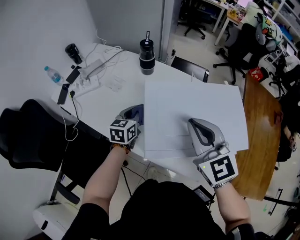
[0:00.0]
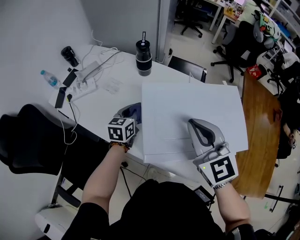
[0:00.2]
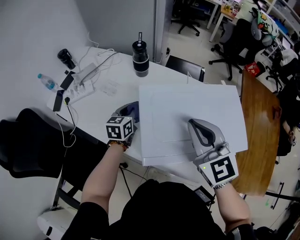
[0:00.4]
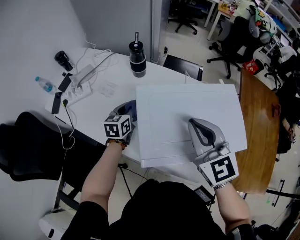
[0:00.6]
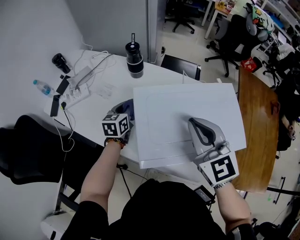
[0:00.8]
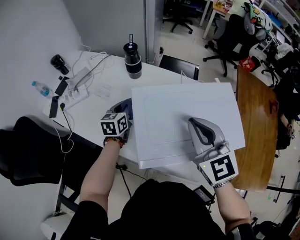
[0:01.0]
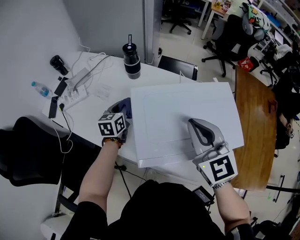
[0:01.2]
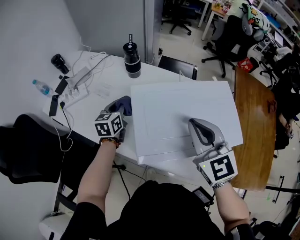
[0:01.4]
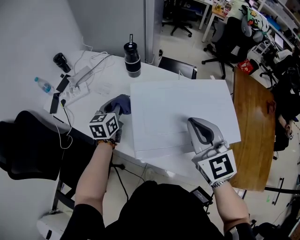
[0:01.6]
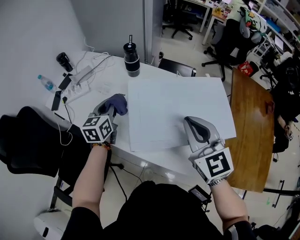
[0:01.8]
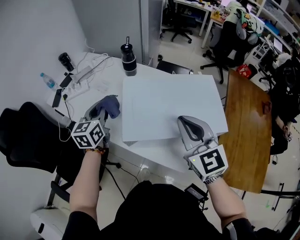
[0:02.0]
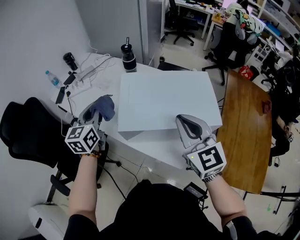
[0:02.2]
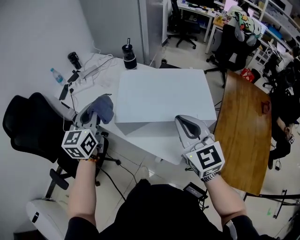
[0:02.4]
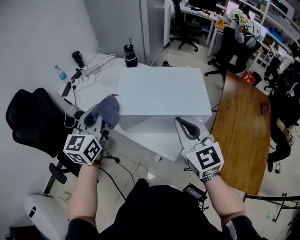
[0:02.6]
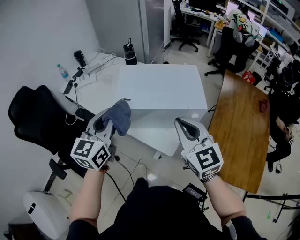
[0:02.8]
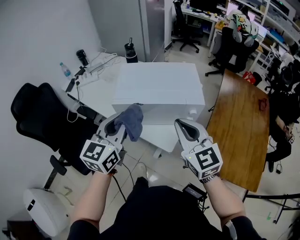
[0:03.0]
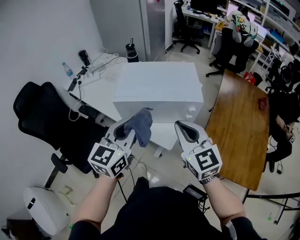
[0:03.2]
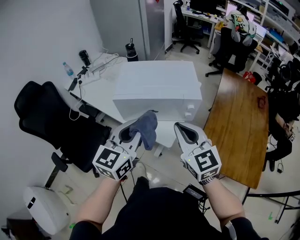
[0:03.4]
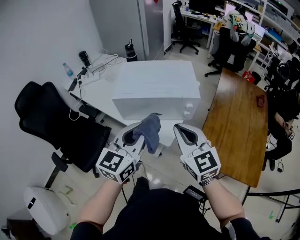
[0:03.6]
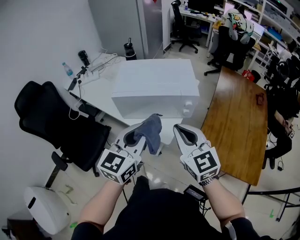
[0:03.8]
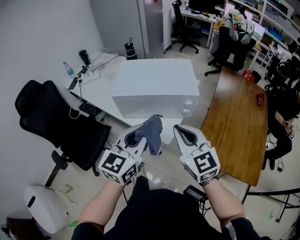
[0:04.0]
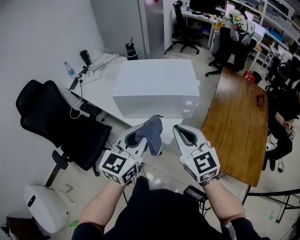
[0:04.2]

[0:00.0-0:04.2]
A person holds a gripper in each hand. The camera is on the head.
0.0 to 1.4 s: The left gripper moves forward, approximately 5 cm.
1.4 to 2.8 s: The right gripper moves backward, approximately 20 cm. The left gripper goes approximately 40 cm backward and upward, and rotates roughly 30 degrees.
2.8 to 4.2 s: The left gripper travels backward and to the right by roughly 20 cm. The right gripper is displaced backward by some 10 cm.

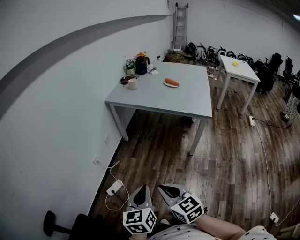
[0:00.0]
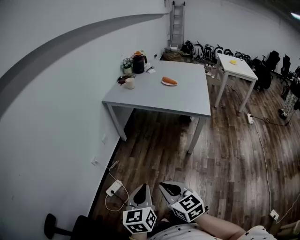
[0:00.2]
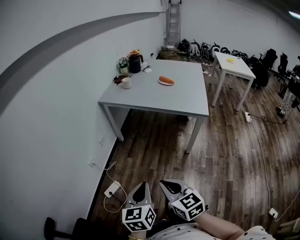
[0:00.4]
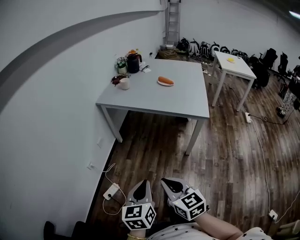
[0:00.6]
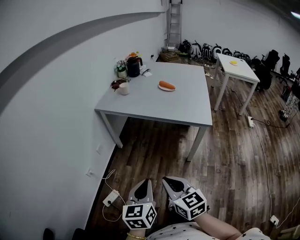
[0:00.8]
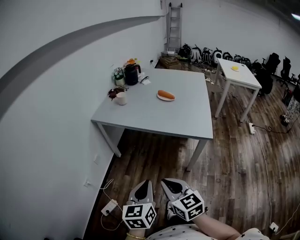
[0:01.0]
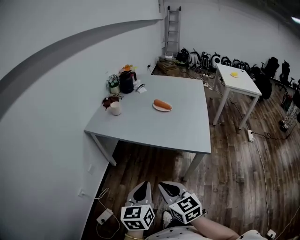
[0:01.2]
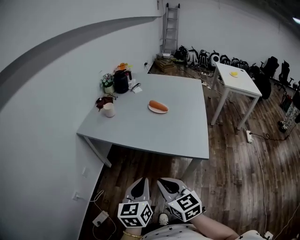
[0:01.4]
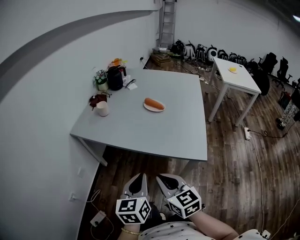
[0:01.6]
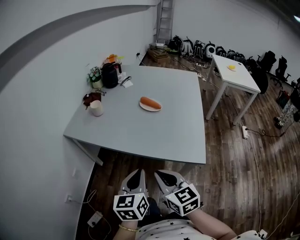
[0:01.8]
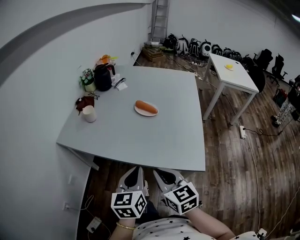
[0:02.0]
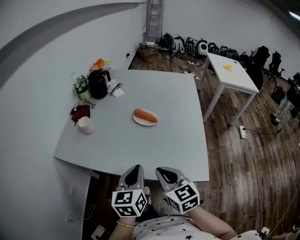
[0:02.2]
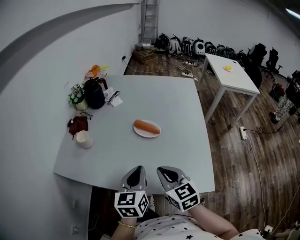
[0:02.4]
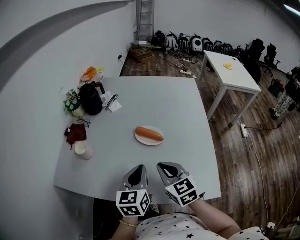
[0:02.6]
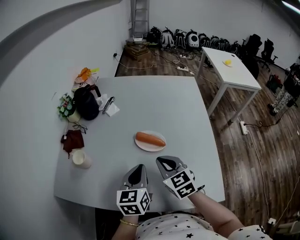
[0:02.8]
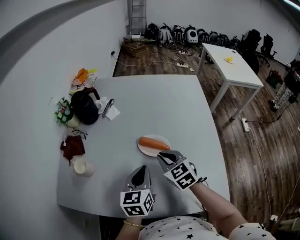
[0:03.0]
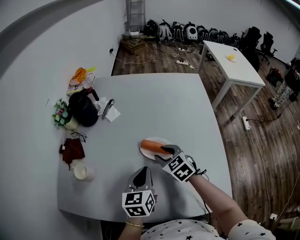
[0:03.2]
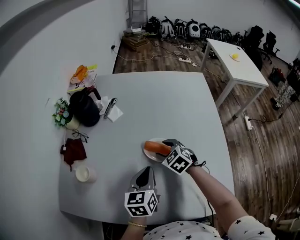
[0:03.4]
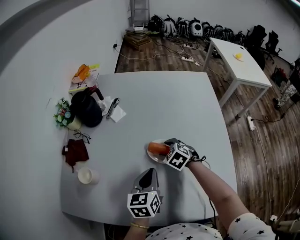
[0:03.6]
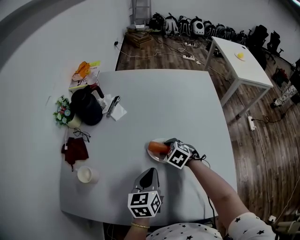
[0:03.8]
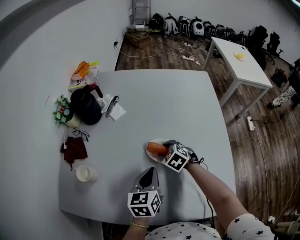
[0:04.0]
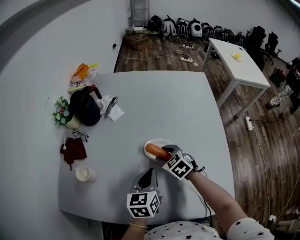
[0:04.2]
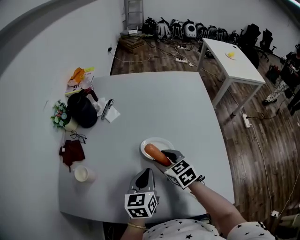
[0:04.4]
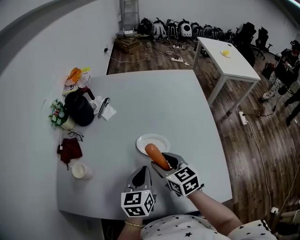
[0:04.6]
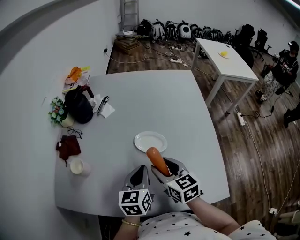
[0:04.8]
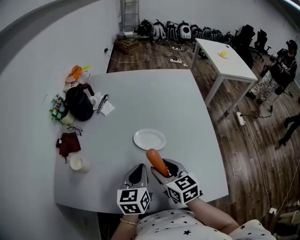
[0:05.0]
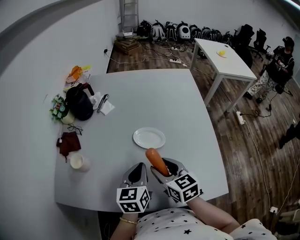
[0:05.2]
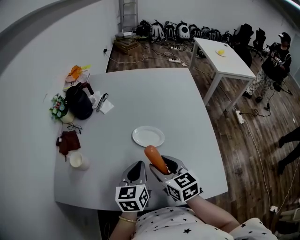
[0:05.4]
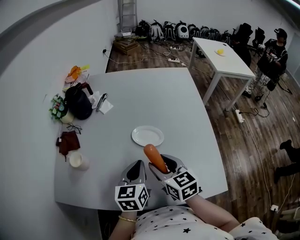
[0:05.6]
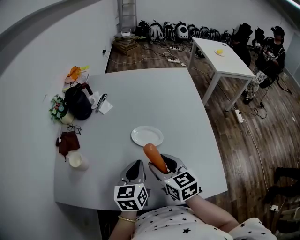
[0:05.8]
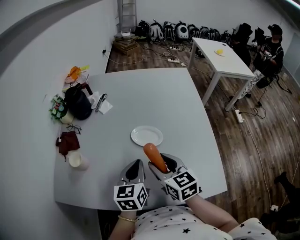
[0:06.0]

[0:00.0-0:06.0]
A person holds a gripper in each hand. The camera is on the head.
0.0 to 1.6 s: Both grippers are carried forward and to the right, approximately 40 cm.
1.6 to 3.0 s: Both grippers are carried forward, about 50 cm. The right gripper turns by about 20 degrees.
3.0 to 4.4 s: The right gripper goes downward and returns, roughly 10 cm each way, and opens.
4.4 to 6.0 s: The right gripper goes some 15 cm backward and upward, while the left gripper ends up roughly 5 cm from where it was.

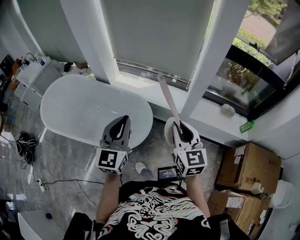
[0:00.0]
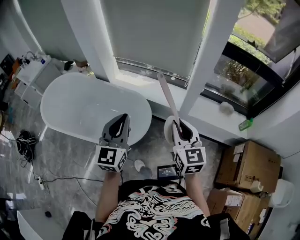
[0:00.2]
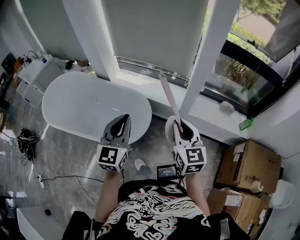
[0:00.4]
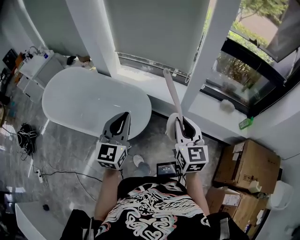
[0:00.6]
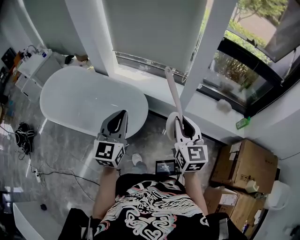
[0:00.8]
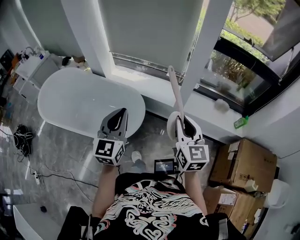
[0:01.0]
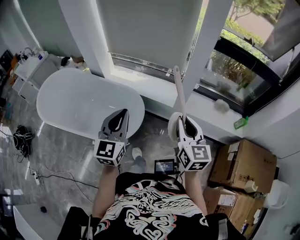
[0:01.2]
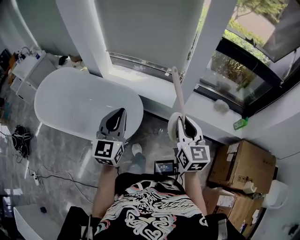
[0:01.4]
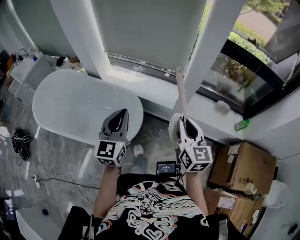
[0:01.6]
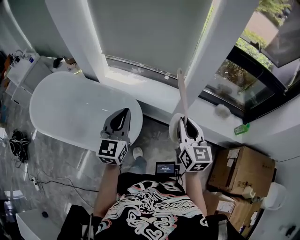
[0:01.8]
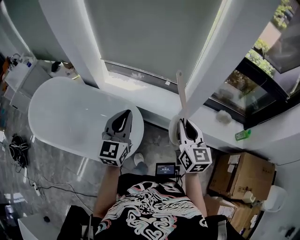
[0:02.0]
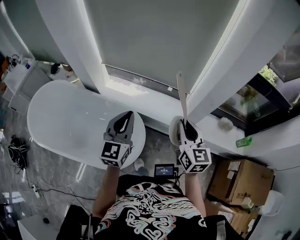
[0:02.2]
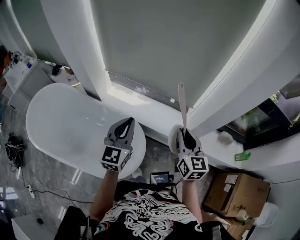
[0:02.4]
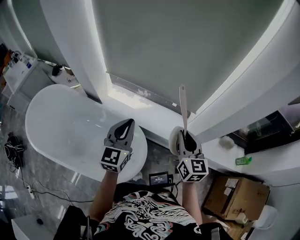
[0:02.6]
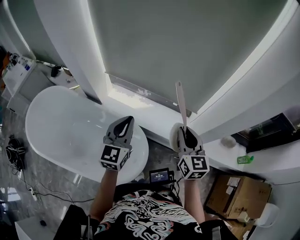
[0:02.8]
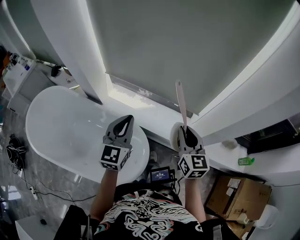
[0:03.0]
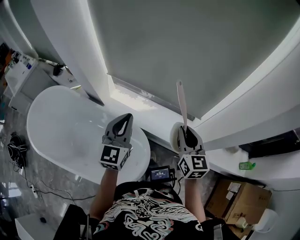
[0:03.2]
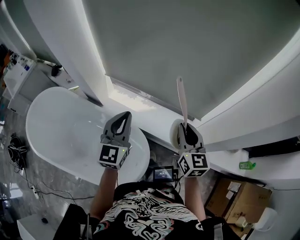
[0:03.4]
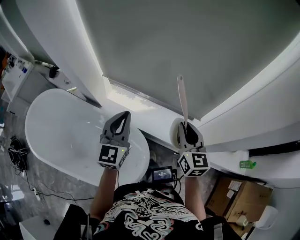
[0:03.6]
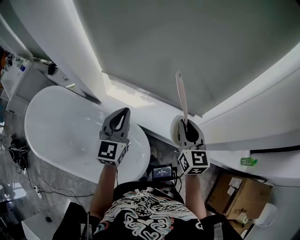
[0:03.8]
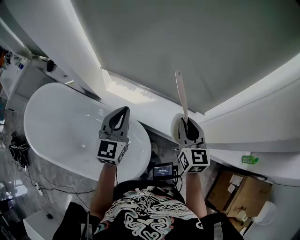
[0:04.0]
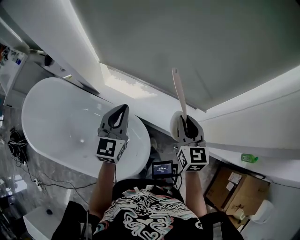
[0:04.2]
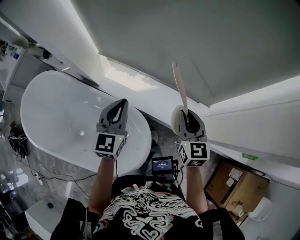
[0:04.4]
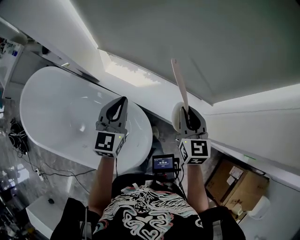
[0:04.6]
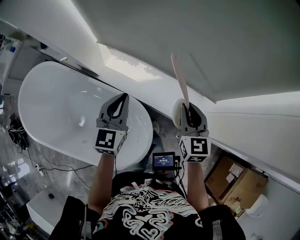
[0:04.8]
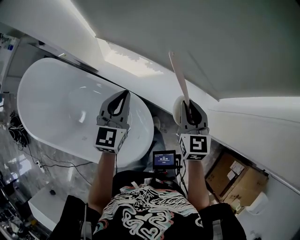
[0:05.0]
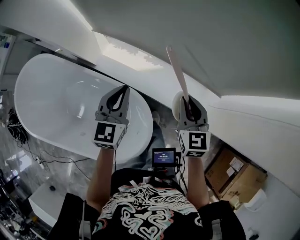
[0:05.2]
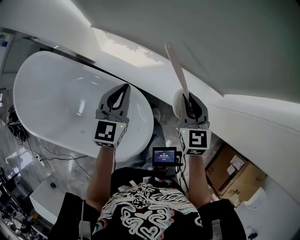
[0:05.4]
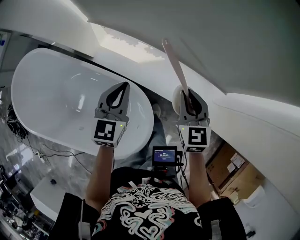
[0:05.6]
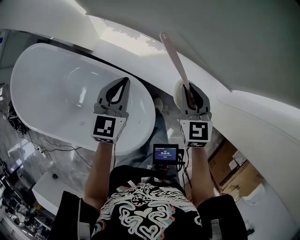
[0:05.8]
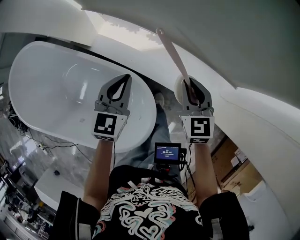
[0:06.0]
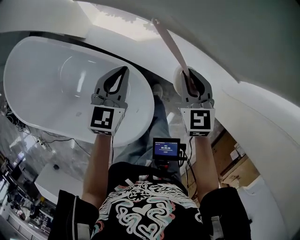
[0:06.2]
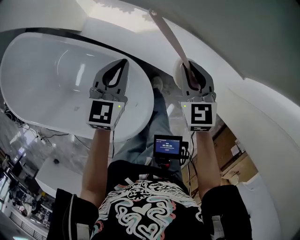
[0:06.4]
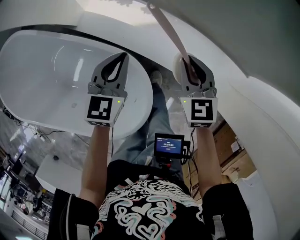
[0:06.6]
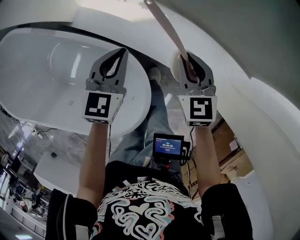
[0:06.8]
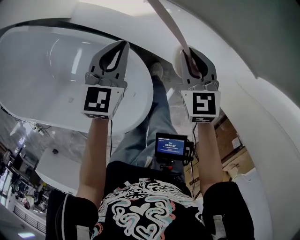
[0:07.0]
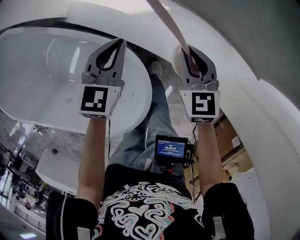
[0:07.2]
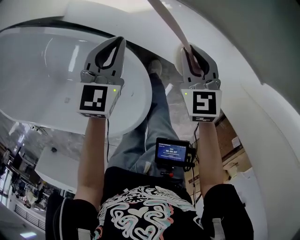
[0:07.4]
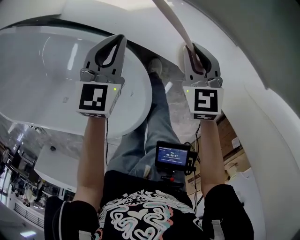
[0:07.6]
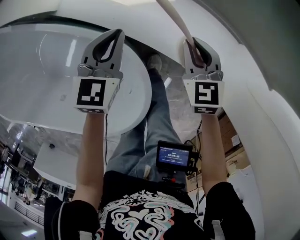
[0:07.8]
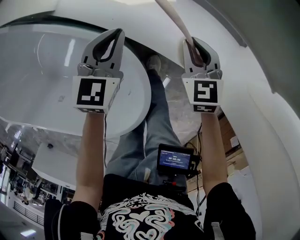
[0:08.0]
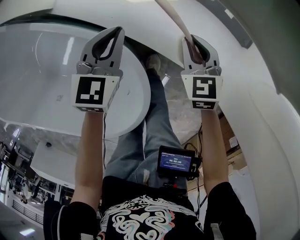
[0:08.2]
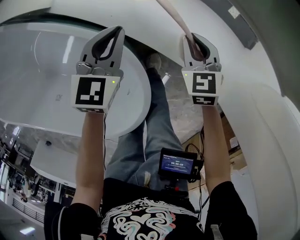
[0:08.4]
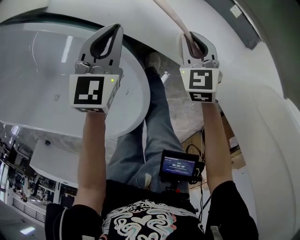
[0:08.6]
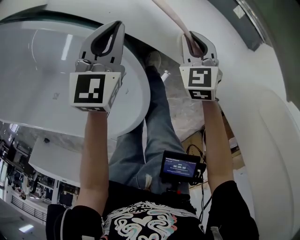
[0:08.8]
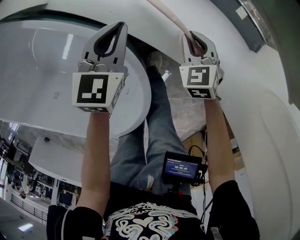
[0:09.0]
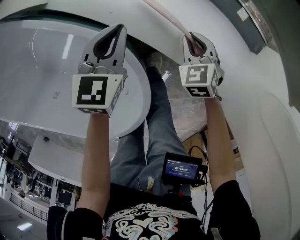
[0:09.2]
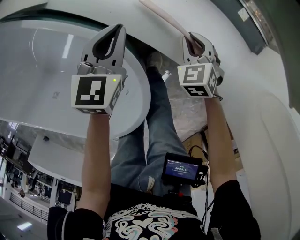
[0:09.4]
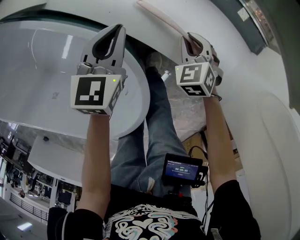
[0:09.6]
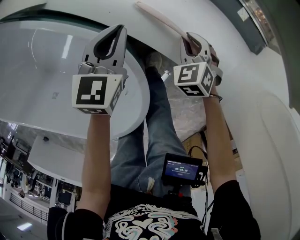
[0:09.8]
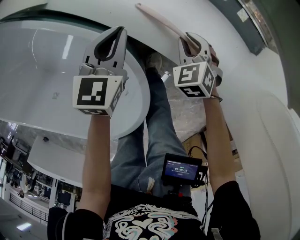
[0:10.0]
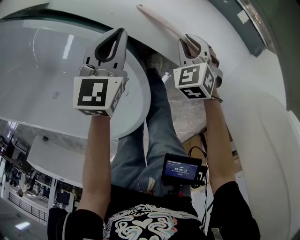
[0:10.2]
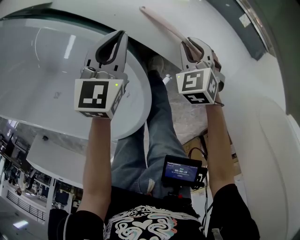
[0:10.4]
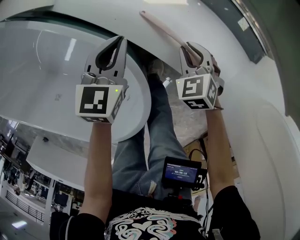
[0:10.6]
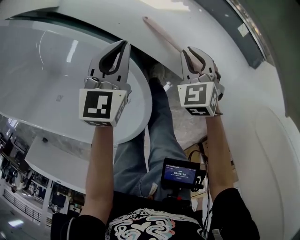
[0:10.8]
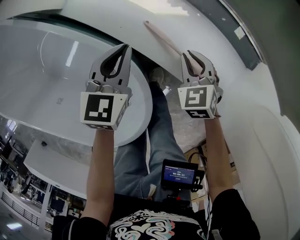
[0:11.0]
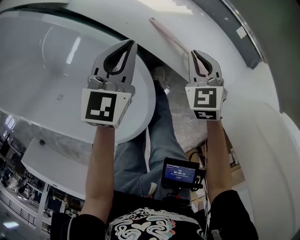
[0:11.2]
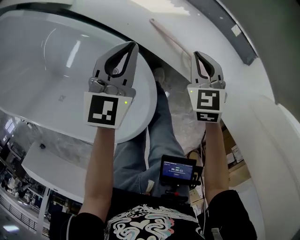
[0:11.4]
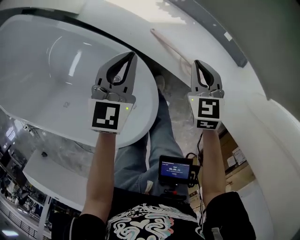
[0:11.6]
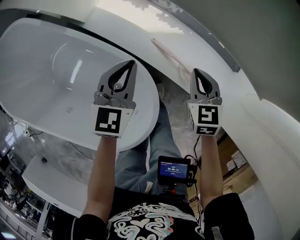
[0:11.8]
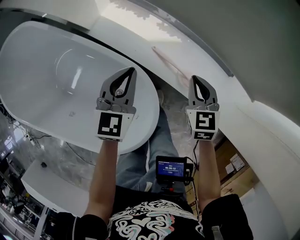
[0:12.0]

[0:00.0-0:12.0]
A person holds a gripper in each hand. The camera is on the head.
0.0 to 1.6 s: The right gripper is displaced to the right by approximately 10 cm. The left gripper shifts approximately 10 cm forward and to the right.
1.6 to 3.0 s: Both grippers travel together forward, roughly 35 cm.
3.0 to 4.4 s: The two grippers go approximately 15 cm forward and downward.
4.4 to 6.0 s: The left gripper is displaced downward by about 20 cm; the right gripper heads downward and forward, covering roughly 20 cm.
6.0 to 7.6 s: Both grippers travel together downward, some 20 cm.
7.6 to 9.0 s: The right gripper is displaced downward by roughly 15 cm. Meanwhile the left gripper heads downward, covering roughly 10 cm.
9.0 to 10.4 s: The grippers stay close to where they were, moving slightly.
10.4 to 12.0 s: Both grippers travel together upward, some 20 cm. The right gripper changes its angle by roughly 30 degrees.

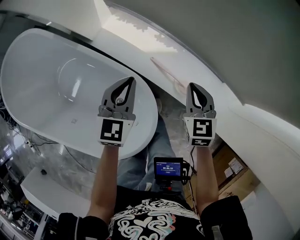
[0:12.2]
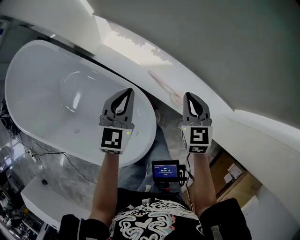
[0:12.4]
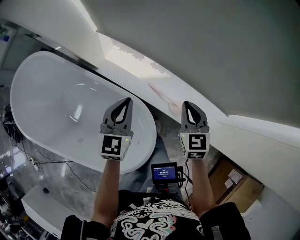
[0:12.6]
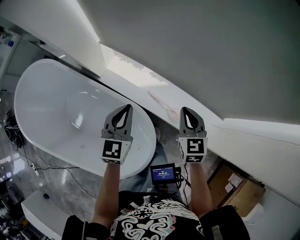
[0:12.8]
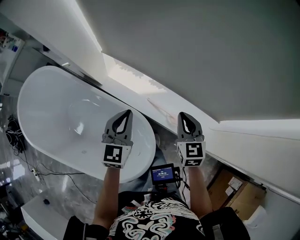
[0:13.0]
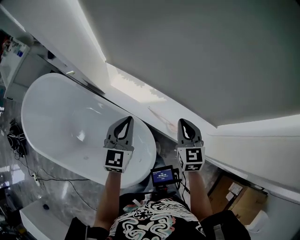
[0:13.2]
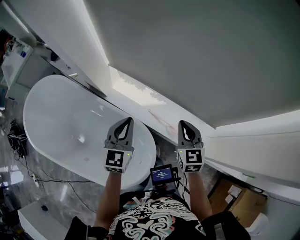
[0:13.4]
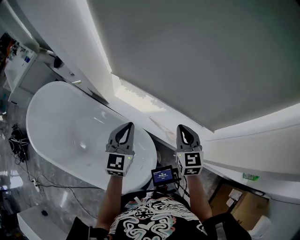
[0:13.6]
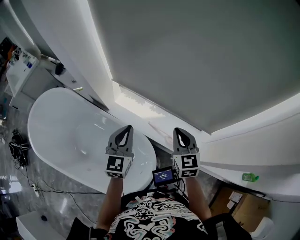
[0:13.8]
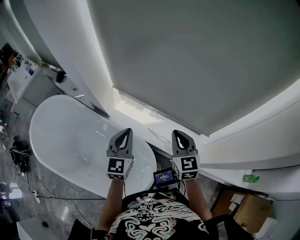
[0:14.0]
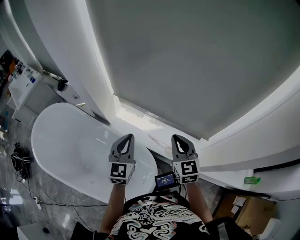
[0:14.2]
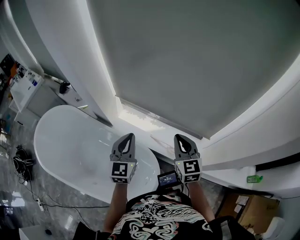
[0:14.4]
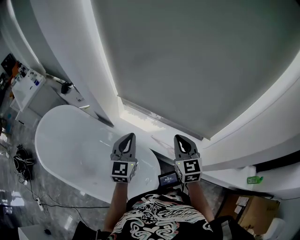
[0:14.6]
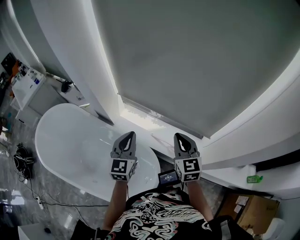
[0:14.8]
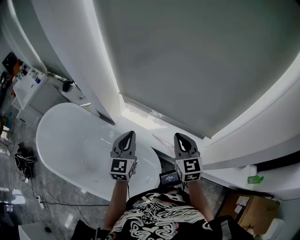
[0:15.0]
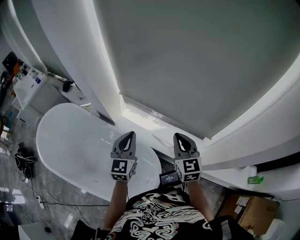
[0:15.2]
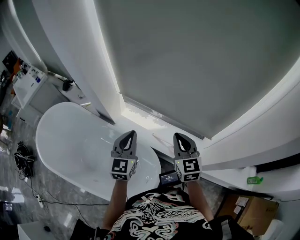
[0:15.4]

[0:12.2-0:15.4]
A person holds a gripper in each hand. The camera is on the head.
12.2 to 13.8 s: Both grippers move upward, about 25 cm.
13.8 to 15.4 s: The left gripper shifts by roughly 5 cm. Meanwhile the right gripper goes approximately 5 cm upward.
